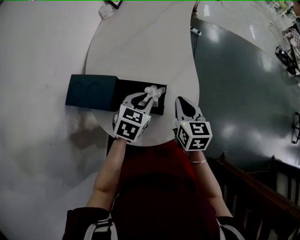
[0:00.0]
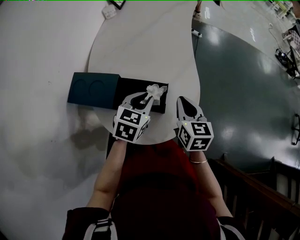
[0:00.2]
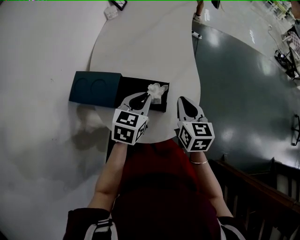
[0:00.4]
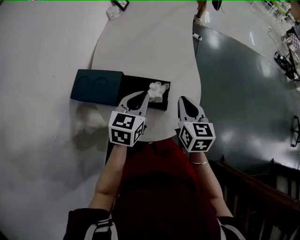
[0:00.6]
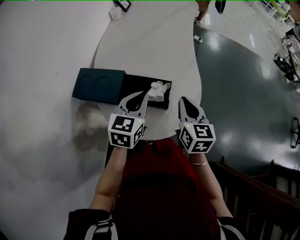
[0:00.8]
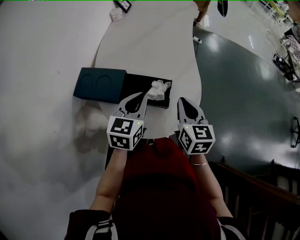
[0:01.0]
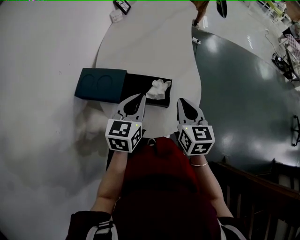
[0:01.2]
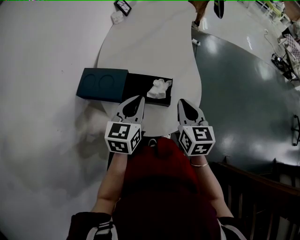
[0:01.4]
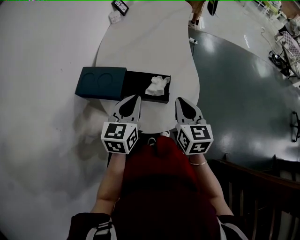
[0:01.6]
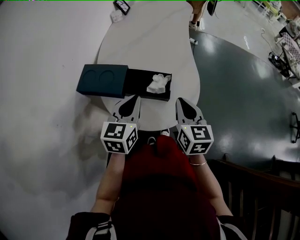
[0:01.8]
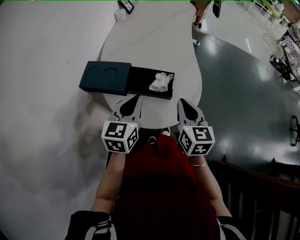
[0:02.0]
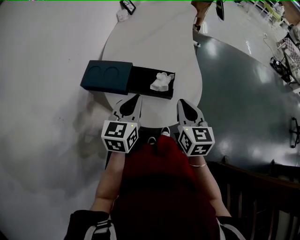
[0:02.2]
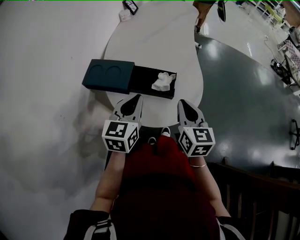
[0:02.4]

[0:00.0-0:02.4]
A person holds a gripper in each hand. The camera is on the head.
0:00.0 to 0:01.2: The right gripper goes roughly 10 cm backward and upward. The left gripper heads upward and backward, covering approximately 10 cm, and turns by roughly 30 degrees.
0:01.2 to 0:02.4: Both grippers travel together backward, about 5 cm.

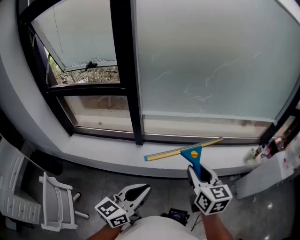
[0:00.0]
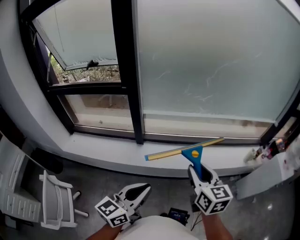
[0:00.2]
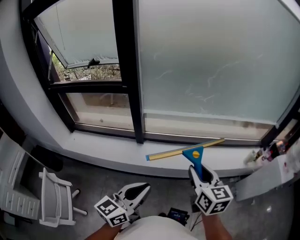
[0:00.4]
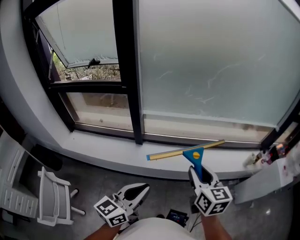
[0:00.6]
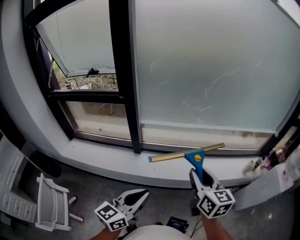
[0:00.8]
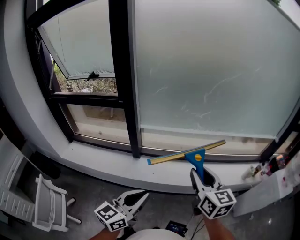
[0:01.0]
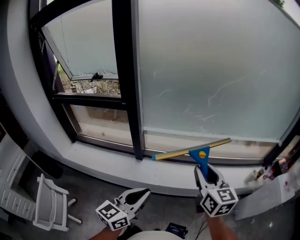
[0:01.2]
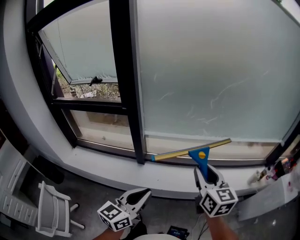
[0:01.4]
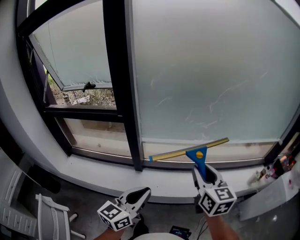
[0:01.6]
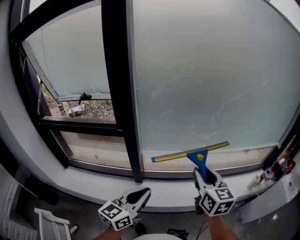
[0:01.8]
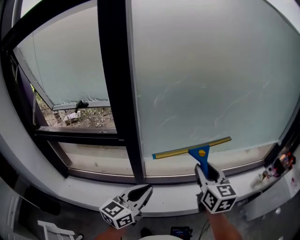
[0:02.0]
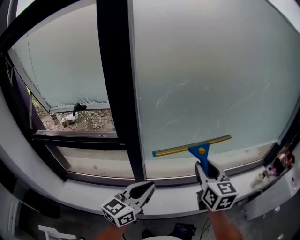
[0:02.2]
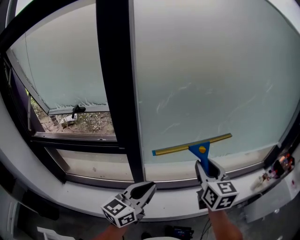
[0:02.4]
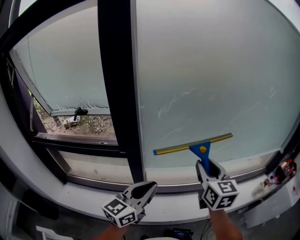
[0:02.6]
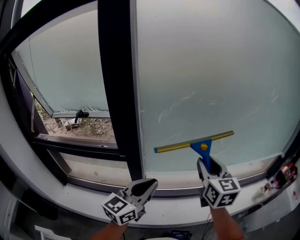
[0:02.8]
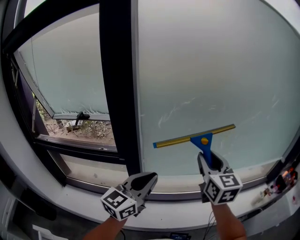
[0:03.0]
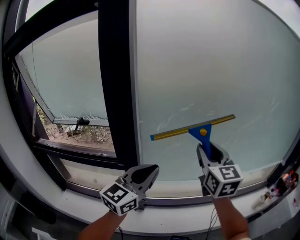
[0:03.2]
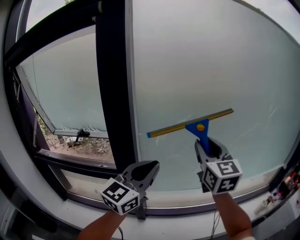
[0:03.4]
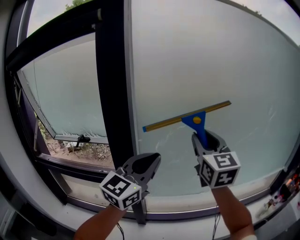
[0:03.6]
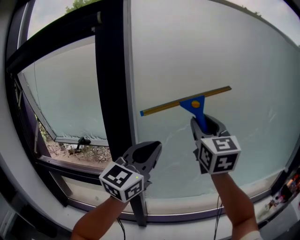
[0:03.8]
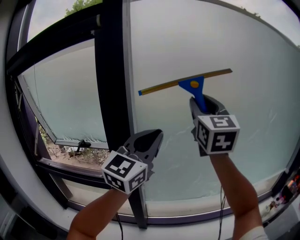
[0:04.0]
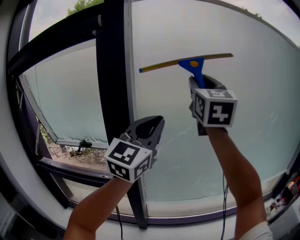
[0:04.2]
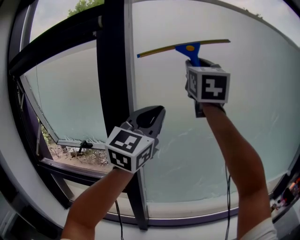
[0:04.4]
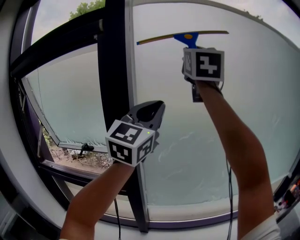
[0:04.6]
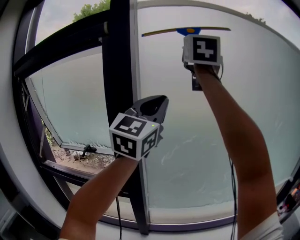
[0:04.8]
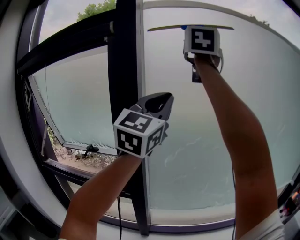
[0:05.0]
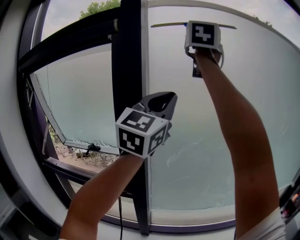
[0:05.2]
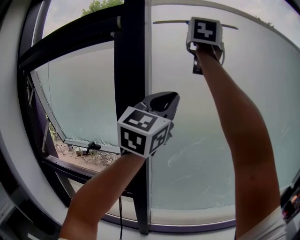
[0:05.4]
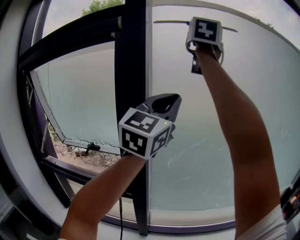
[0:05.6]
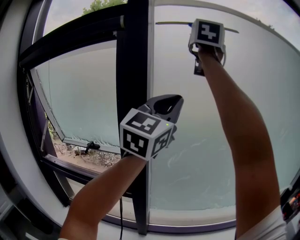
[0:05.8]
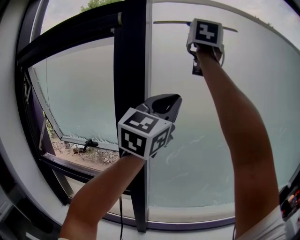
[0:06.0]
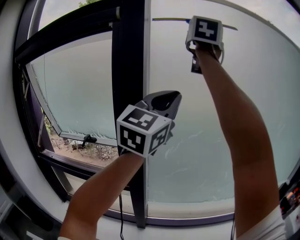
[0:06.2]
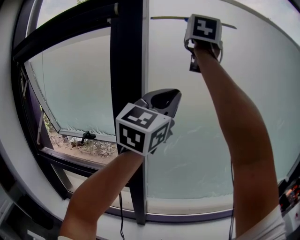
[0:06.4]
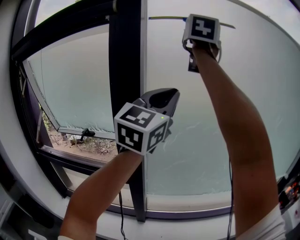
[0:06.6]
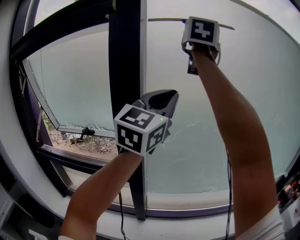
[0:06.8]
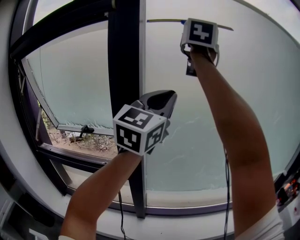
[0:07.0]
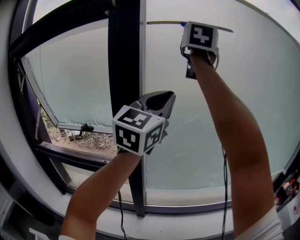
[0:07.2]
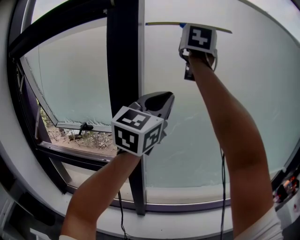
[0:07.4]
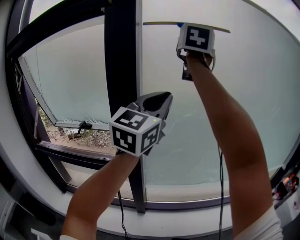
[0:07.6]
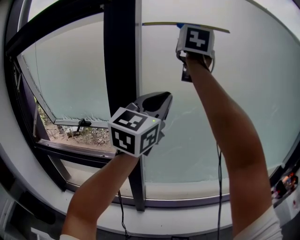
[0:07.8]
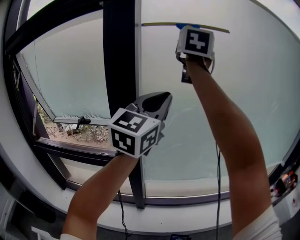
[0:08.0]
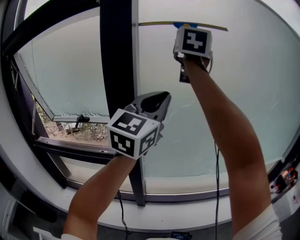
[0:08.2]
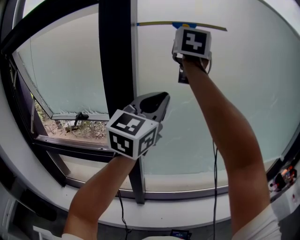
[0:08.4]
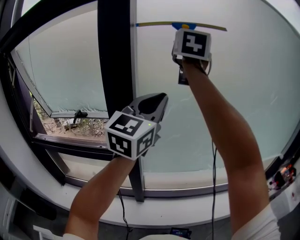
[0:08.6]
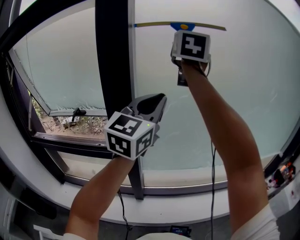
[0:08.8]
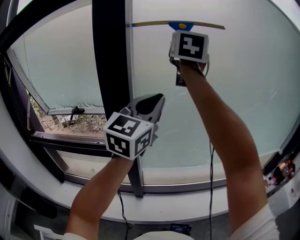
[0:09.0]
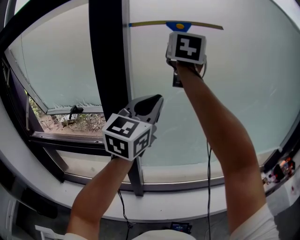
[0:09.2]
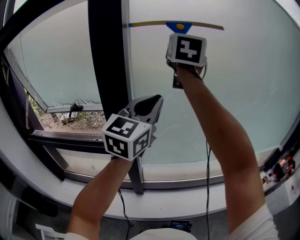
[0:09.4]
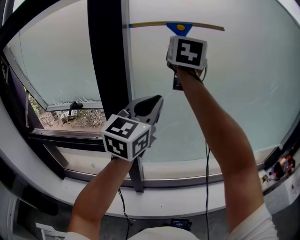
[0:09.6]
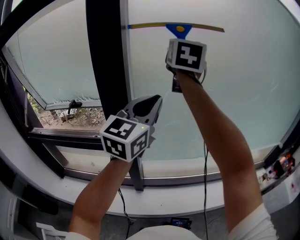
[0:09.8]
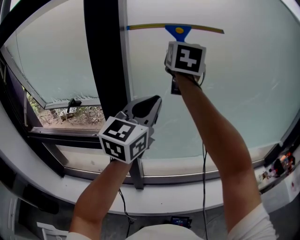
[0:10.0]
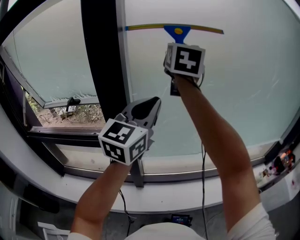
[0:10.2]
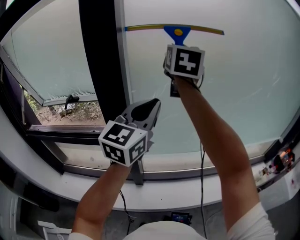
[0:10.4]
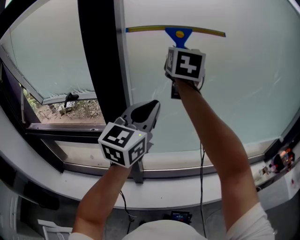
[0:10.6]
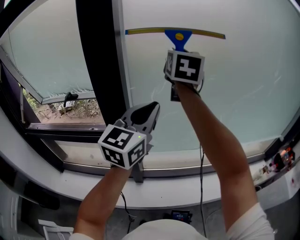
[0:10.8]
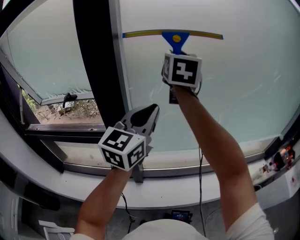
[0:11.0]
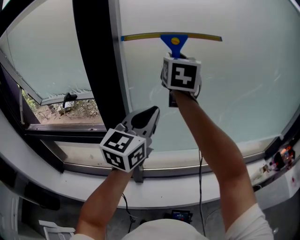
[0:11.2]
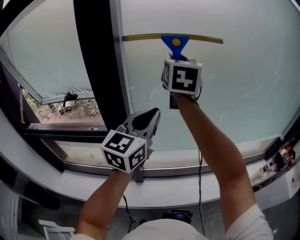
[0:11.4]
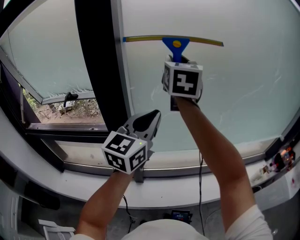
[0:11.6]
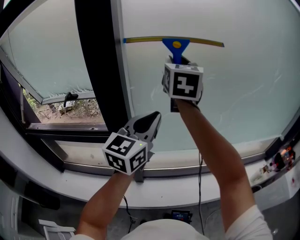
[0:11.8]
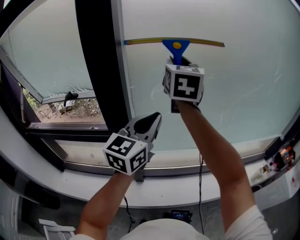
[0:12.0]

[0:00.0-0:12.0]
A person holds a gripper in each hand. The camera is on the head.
0:00.0 to 0:01.6: The two grippers go approximately 15 cm forward.
0:01.6 to 0:03.0: The grippers both shift forward, upward and to the left by about 25 cm.
0:03.0 to 0:04.4: Both grippers travel together upward, roughly 35 cm. The right gripper swivels some 30 degrees; the left gripper turns by roughly 30 degrees.
0:04.4 to 0:06.0: The right gripper heads upward and forward, covering about 15 cm.
0:06.0 to 0:07.6: The right gripper heads downward, covering some 10 cm, while the left gripper heads downward, covering roughly 5 cm.
0:07.6 to 0:09.0: The grippers both shift downward by about 10 cm.
0:09.0 to 0:10.4: Both grippers move downward, roughly 10 cm.
0:10.4 to 0:12.0: The two grippers go roughly 5 cm downward.

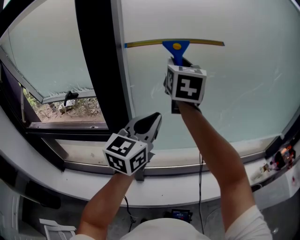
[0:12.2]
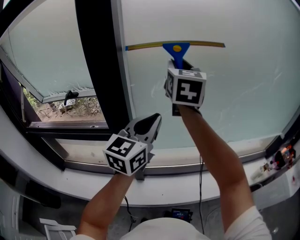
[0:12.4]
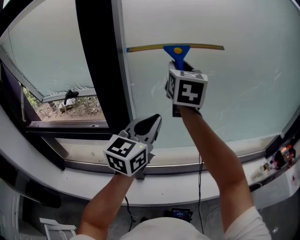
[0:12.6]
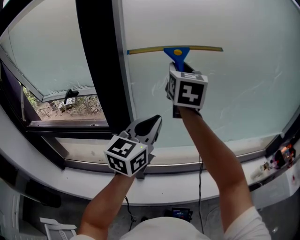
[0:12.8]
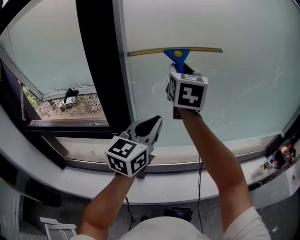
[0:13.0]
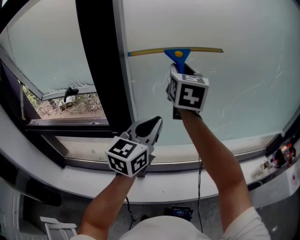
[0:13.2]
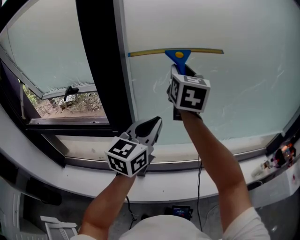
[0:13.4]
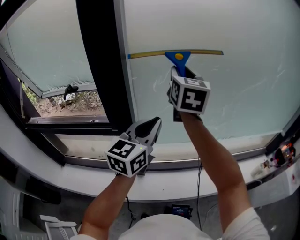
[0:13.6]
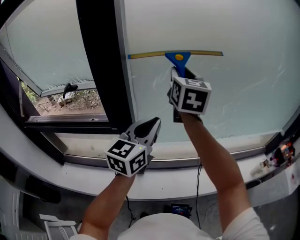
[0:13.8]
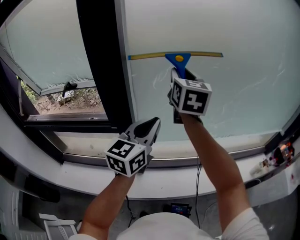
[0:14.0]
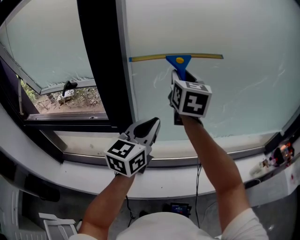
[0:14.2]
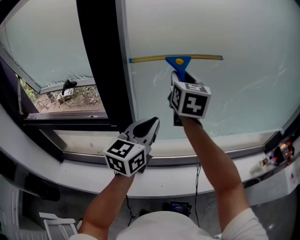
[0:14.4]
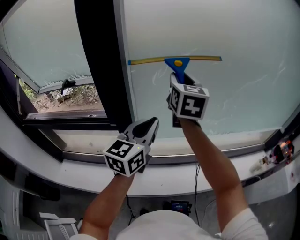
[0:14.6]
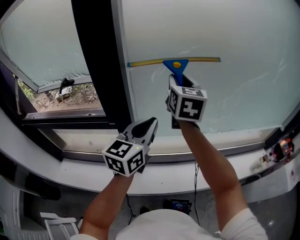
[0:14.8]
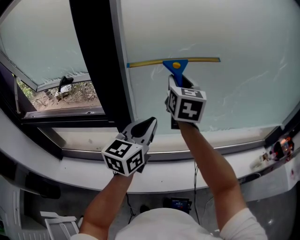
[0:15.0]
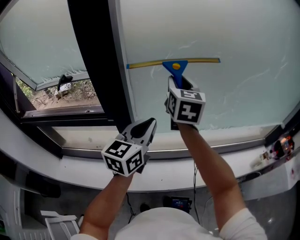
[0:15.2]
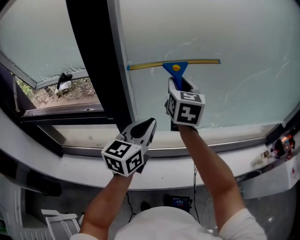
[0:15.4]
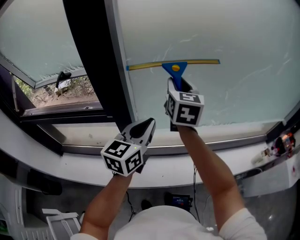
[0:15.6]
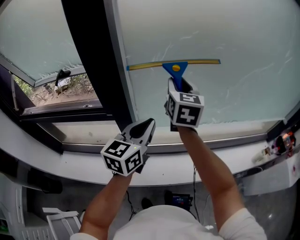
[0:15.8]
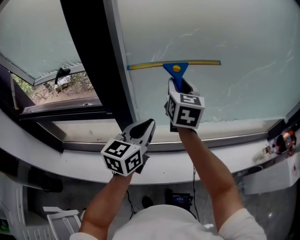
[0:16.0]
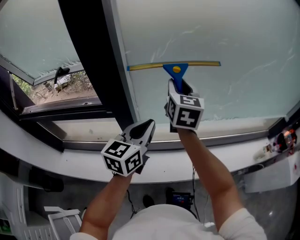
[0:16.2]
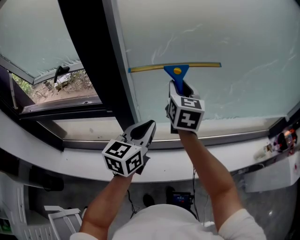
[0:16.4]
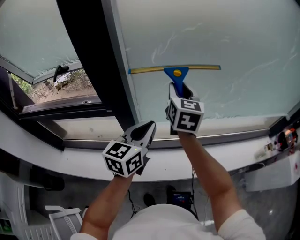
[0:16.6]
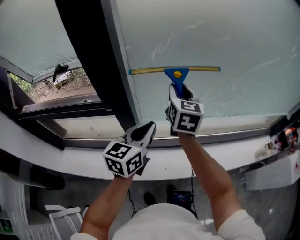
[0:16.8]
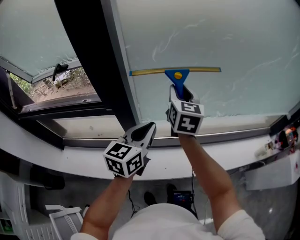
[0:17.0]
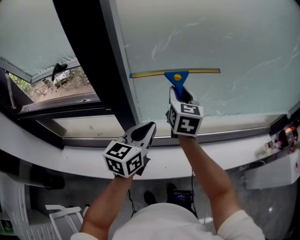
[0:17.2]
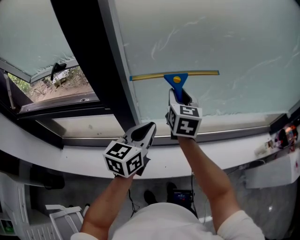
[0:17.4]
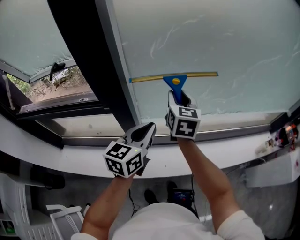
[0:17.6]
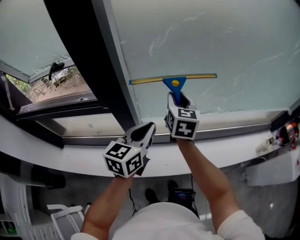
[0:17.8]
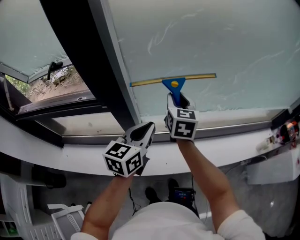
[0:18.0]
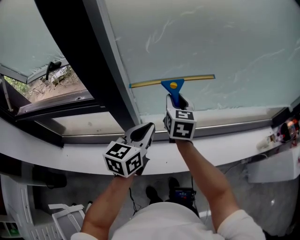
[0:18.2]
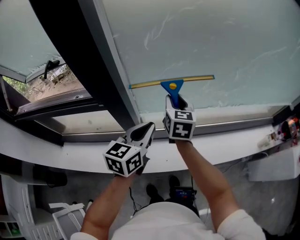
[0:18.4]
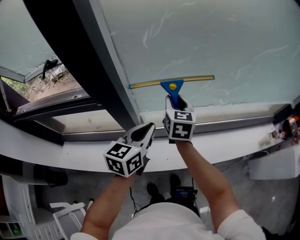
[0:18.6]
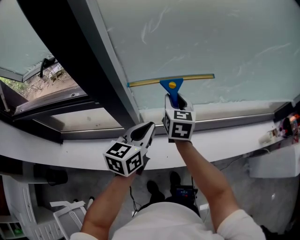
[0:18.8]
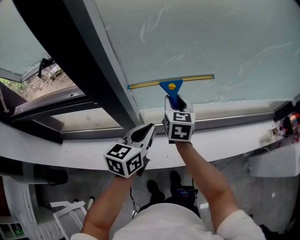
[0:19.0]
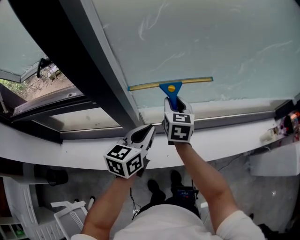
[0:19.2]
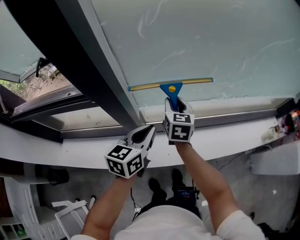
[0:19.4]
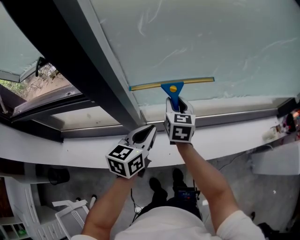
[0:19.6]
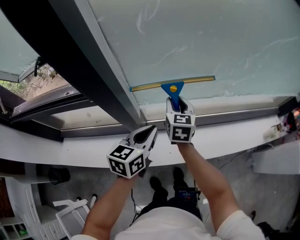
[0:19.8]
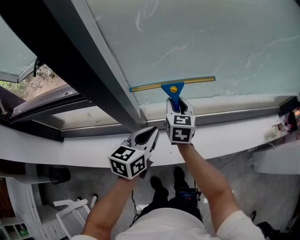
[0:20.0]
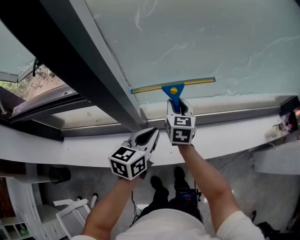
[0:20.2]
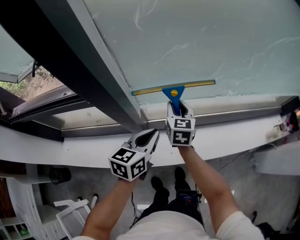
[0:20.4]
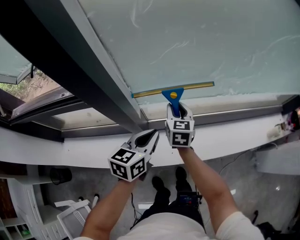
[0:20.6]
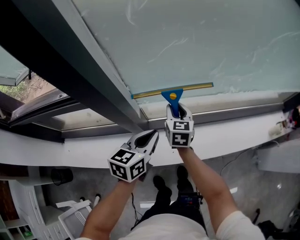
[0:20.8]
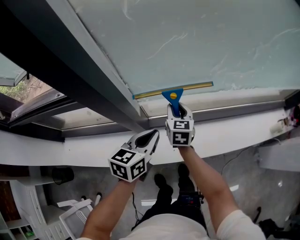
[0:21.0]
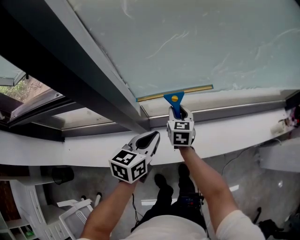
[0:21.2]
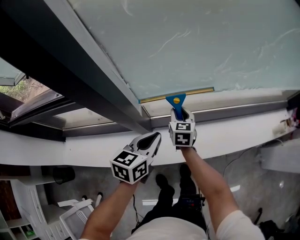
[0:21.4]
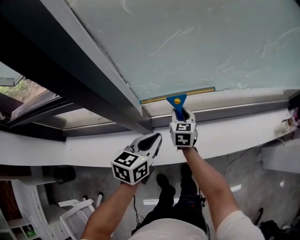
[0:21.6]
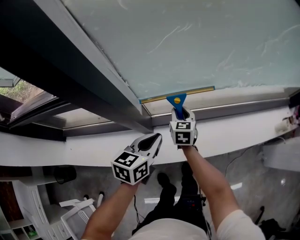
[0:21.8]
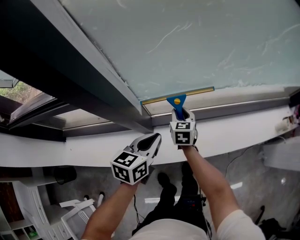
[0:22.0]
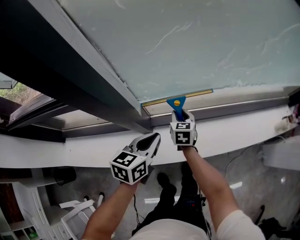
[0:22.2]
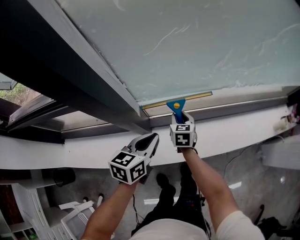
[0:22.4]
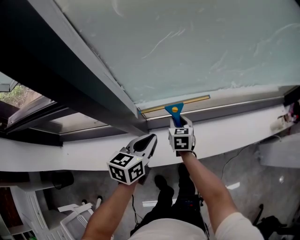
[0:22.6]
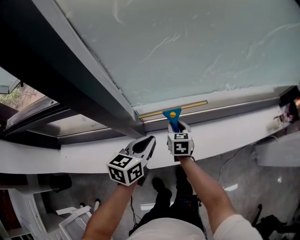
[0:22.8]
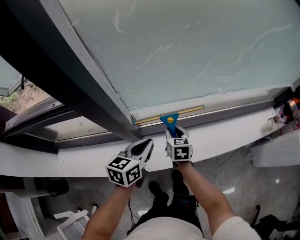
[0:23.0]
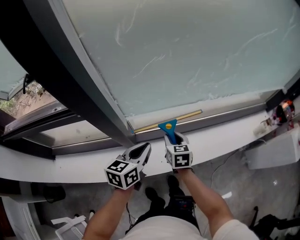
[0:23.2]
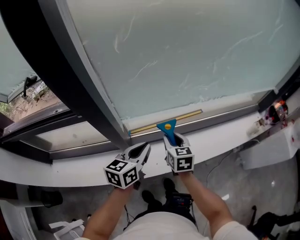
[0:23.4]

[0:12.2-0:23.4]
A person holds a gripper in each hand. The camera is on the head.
0:12.2 to 0:13.8: The grippers both shift downward by some 5 cm.
0:13.8 to 0:15.4: The left gripper goes about 5 cm downward, while the right gripper travels downward by about 10 cm.
0:15.4 to 0:17.0: Both grippers travel together downward, roughly 10 cm.
0:17.0 to 0:18.6: The left gripper heads downward, covering about 5 cm. Meanwhile the right gripper shifts roughly 15 cm downward.
0:18.6 to 0:20.2: Both grippers move downward, some 10 cm.
0:20.2 to 0:21.8: The right gripper moves downward, some 15 cm; the left gripper shifts some 10 cm downward.
0:21.8 to 0:23.4: The right gripper travels upward, backward and to the right by about 20 cm. Meanwhile the left gripper travels upward by approximately 10 cm.
